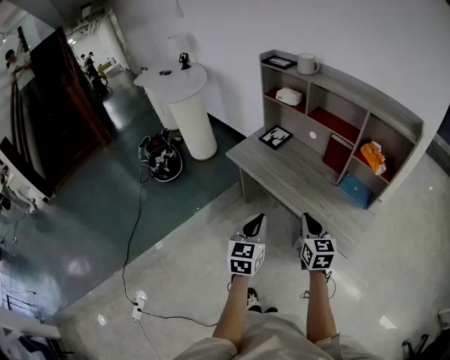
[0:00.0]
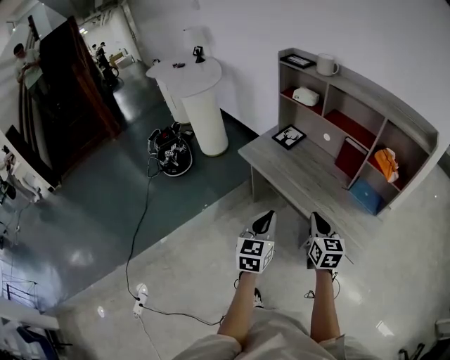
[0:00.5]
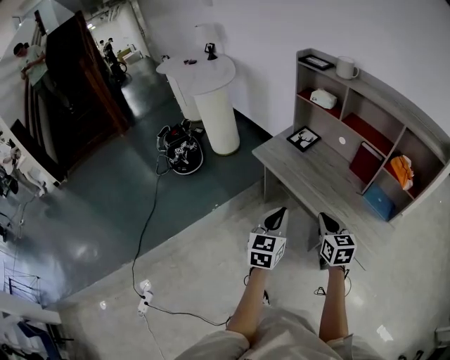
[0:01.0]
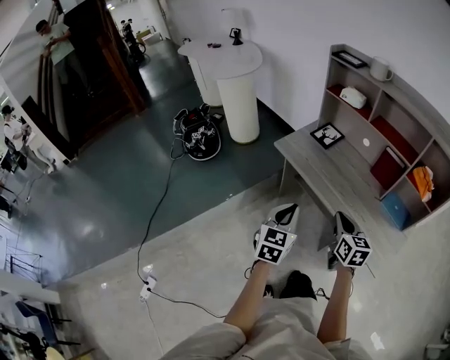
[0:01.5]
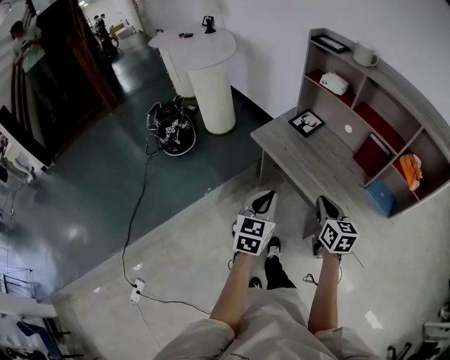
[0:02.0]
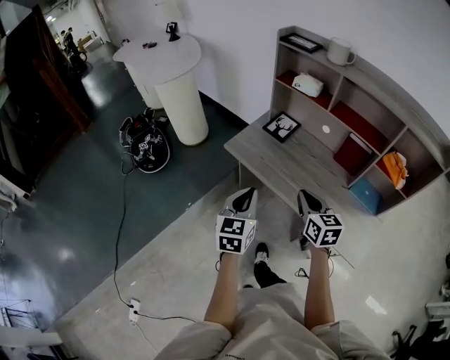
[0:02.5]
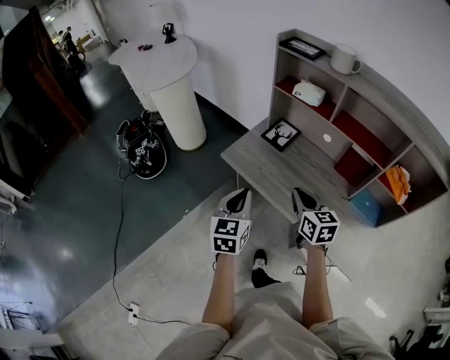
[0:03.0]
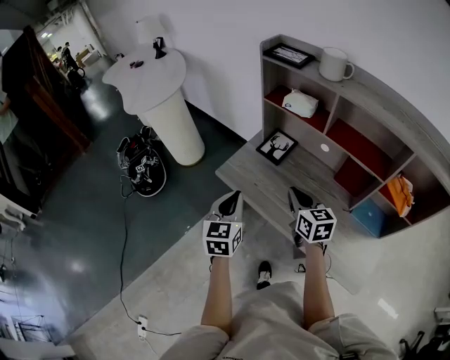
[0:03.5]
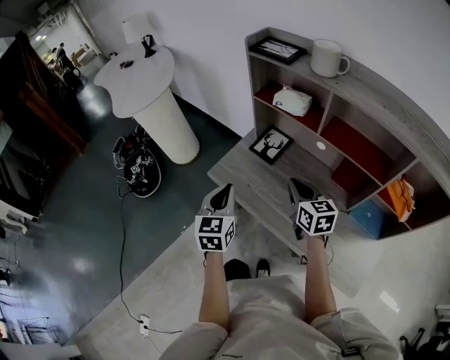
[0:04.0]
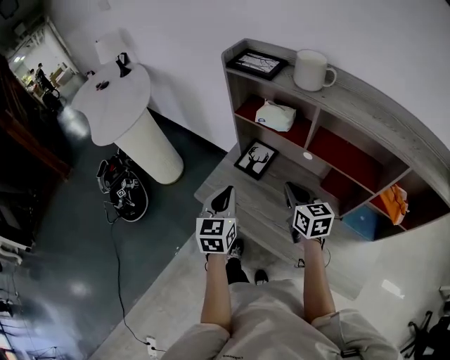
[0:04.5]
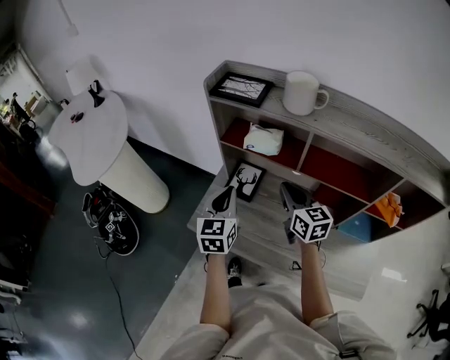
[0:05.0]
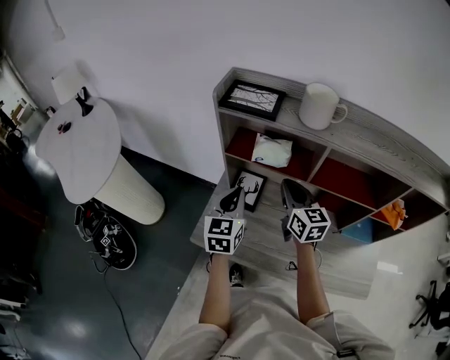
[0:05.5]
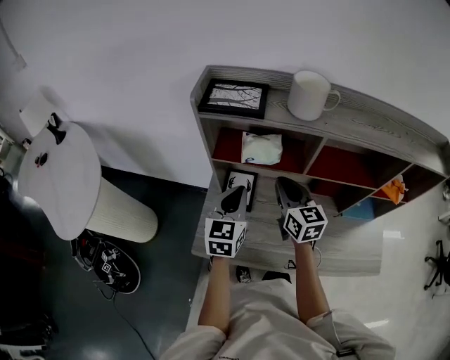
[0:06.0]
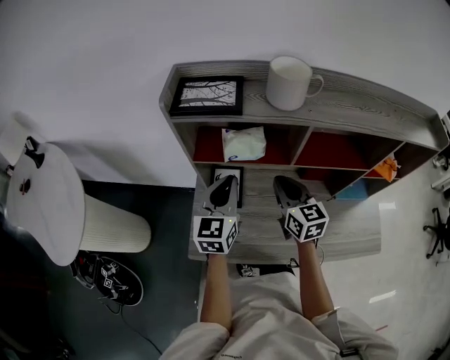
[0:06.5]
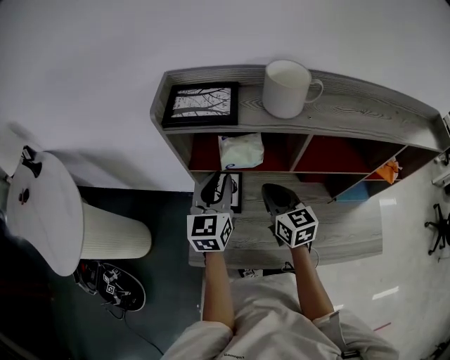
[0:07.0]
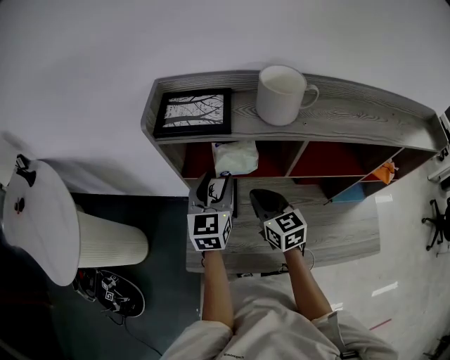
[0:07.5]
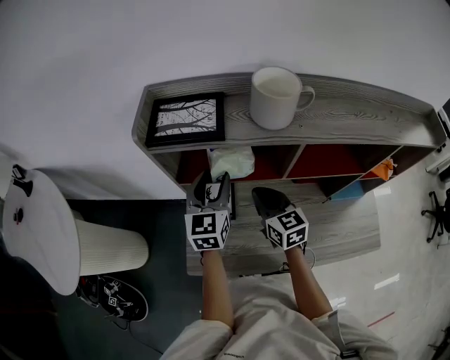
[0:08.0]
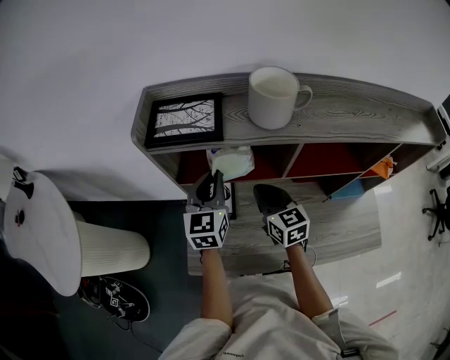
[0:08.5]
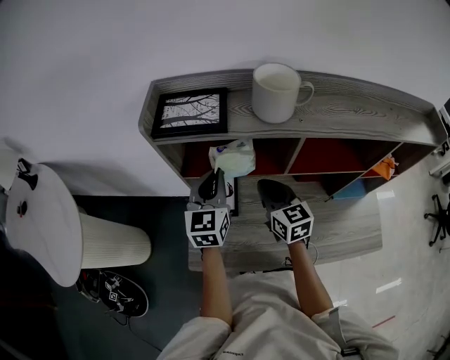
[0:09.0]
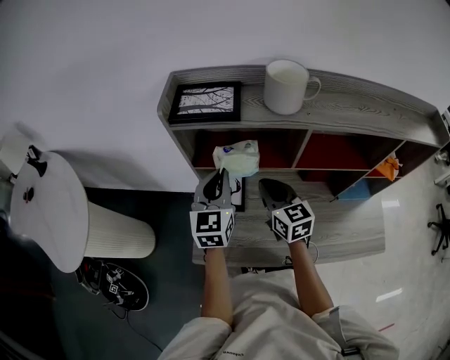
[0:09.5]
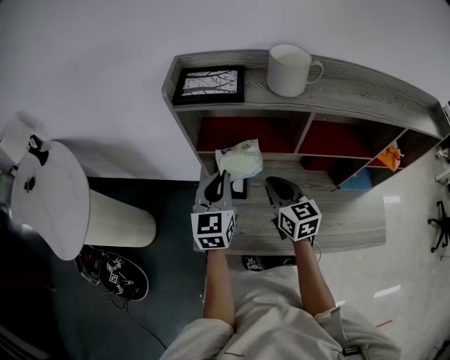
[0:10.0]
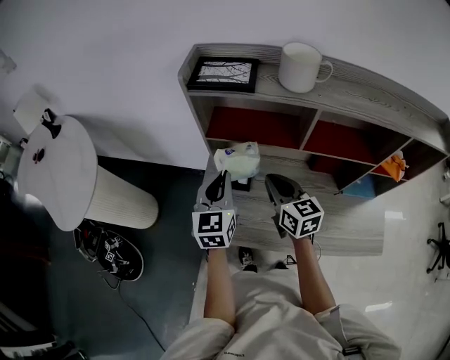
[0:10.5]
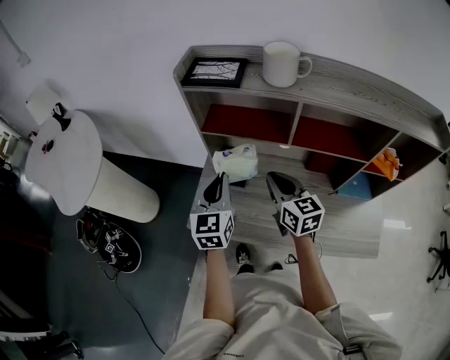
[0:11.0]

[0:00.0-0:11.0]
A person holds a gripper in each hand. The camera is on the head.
0:00.0 to 0:02.0: The two grippers go some 15 cm forward and to the left.
0:02.0 to 0:03.5: Both grippers move forward, approximately 25 cm.
0:03.5 to 0:05.5: Both grippers move forward, roughly 25 cm. The right gripper swivels some 20 degrees, while the left gripper changes its angle by some 20 degrees.
0:05.5 to 0:07.5: The left gripper moves forward, about 10 cm, and opens. Meanwhile the right gripper is displaced downward by about 5 cm.
0:07.5 to 0:09.0: The left gripper closes.
0:09.0 to 0:11.0: Both grippers travel together backward, about 15 cm.

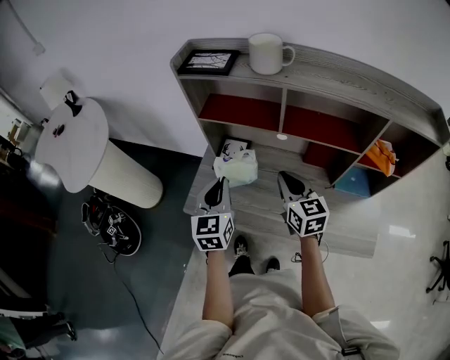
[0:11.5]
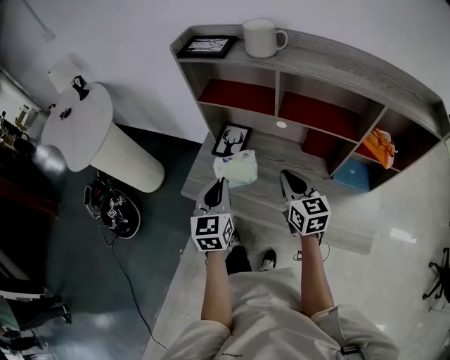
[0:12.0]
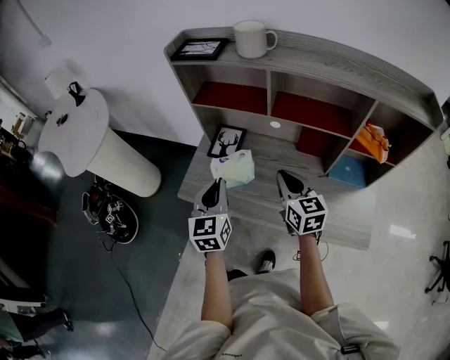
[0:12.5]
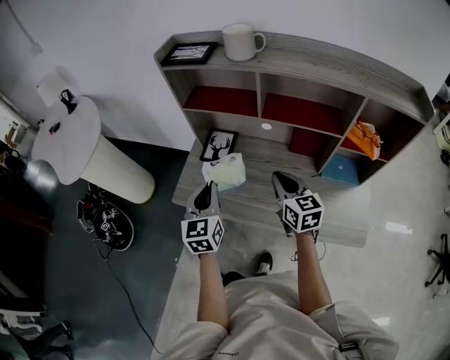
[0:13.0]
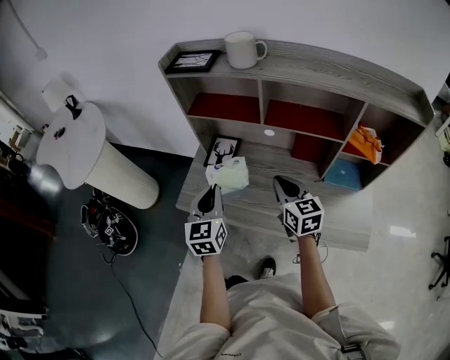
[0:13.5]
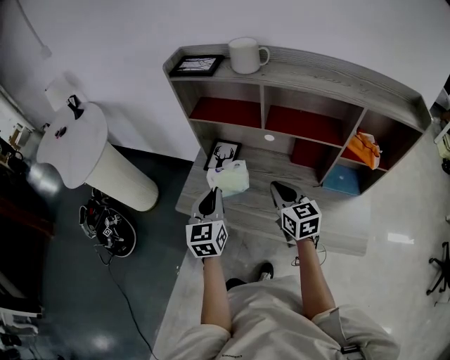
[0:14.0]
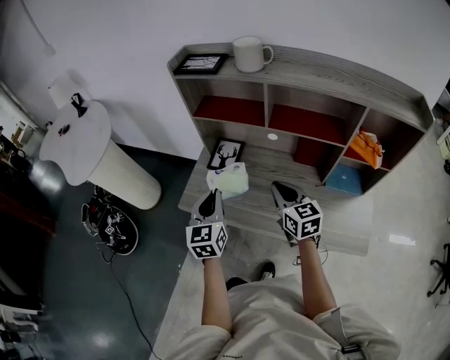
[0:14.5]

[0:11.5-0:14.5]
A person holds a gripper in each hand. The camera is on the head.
0:11.5 to 0:13.0: Both grippers move backward, about 5 cm.
0:13.0 to 0:14.5: There are only small adjustments of the grippers.

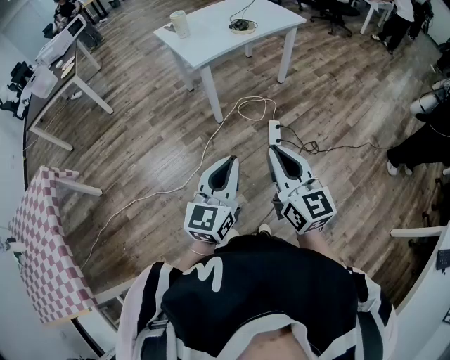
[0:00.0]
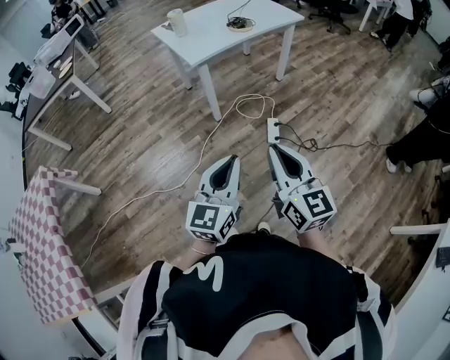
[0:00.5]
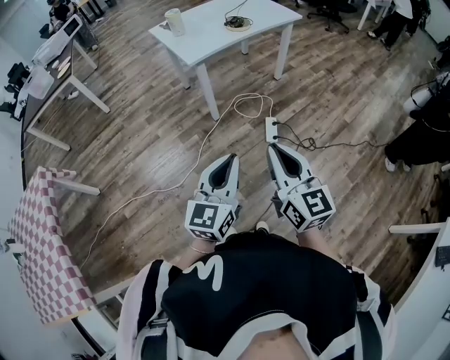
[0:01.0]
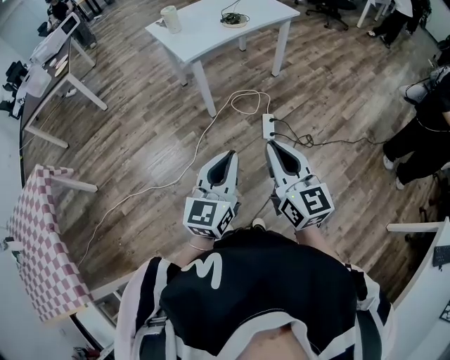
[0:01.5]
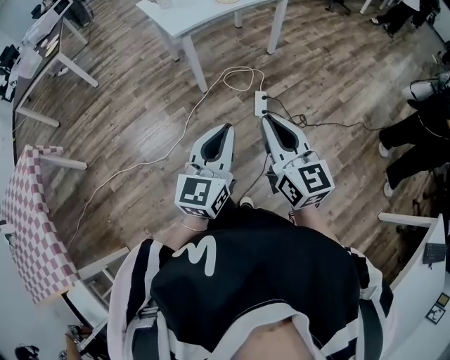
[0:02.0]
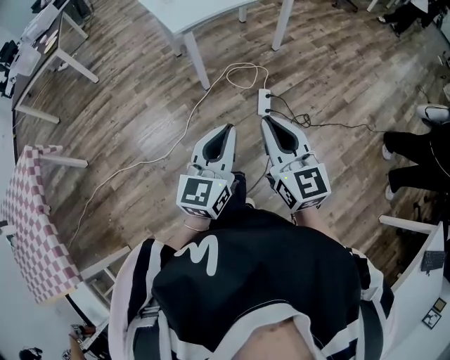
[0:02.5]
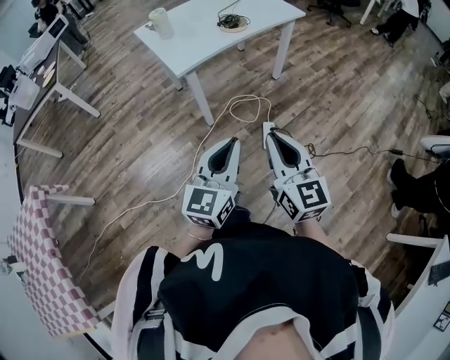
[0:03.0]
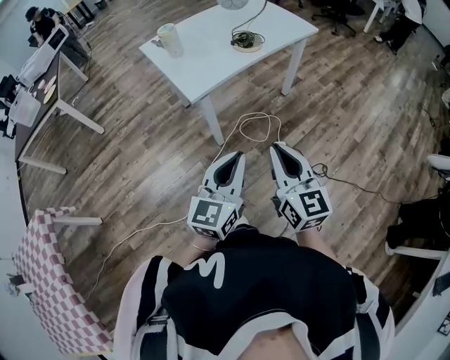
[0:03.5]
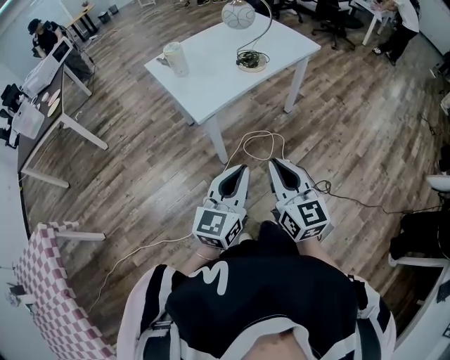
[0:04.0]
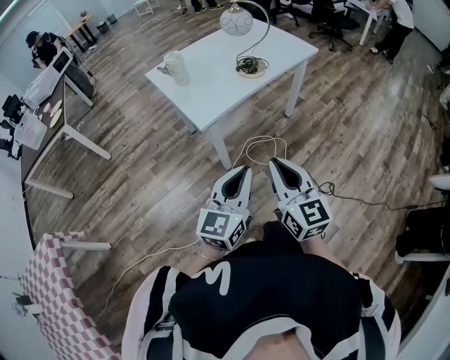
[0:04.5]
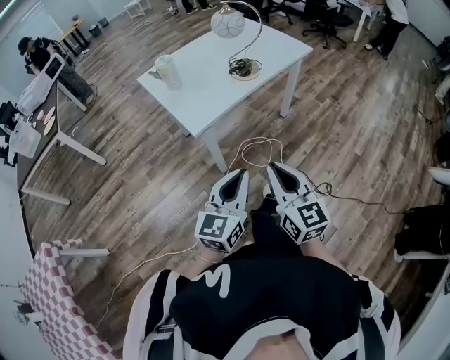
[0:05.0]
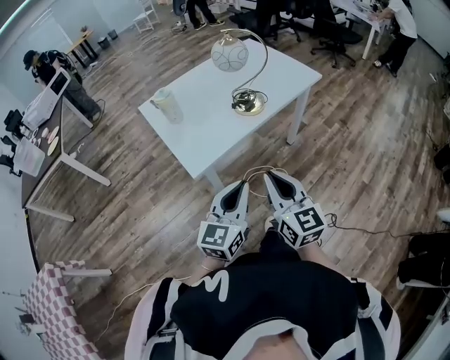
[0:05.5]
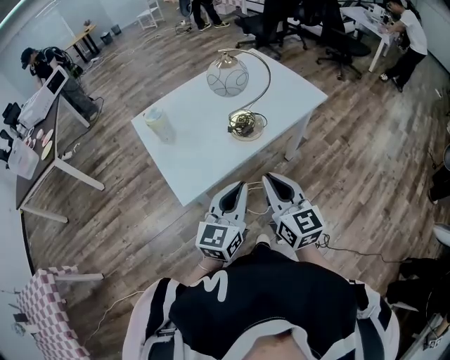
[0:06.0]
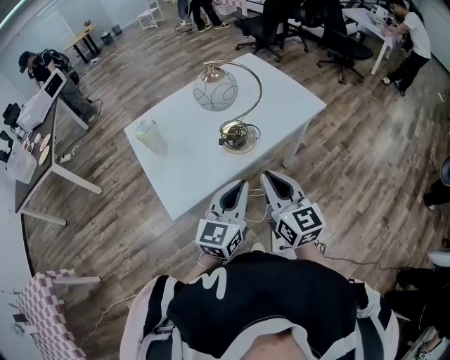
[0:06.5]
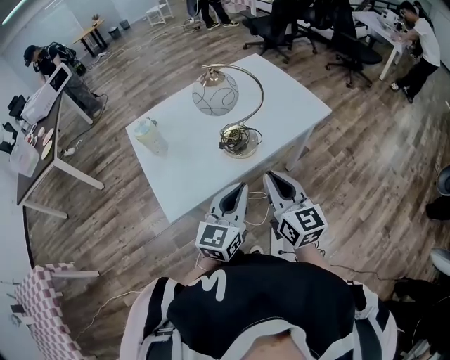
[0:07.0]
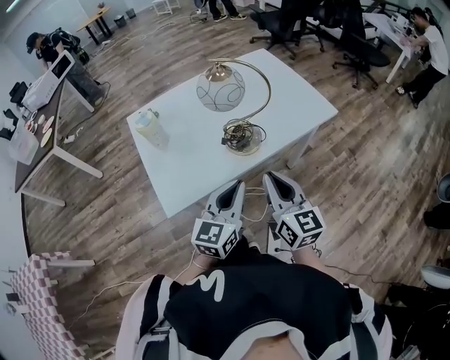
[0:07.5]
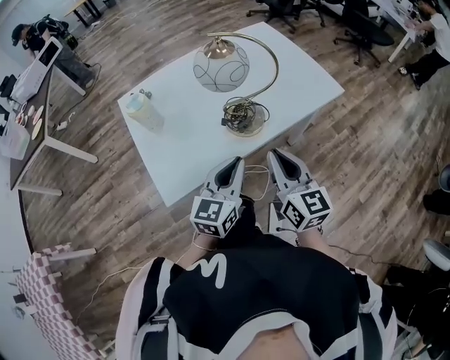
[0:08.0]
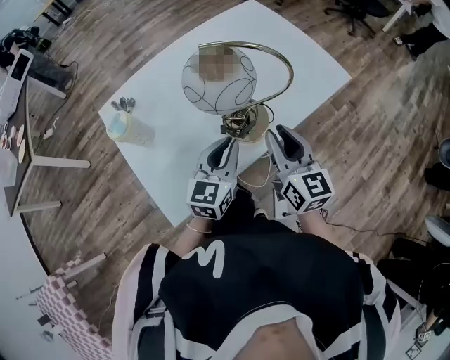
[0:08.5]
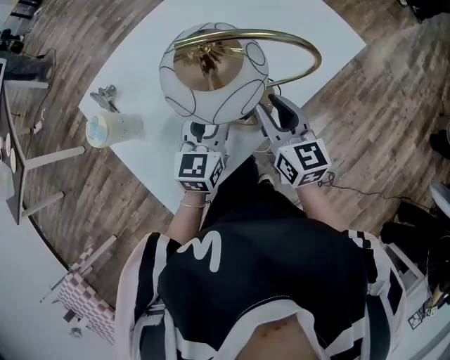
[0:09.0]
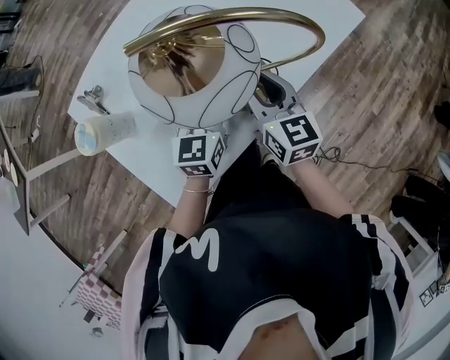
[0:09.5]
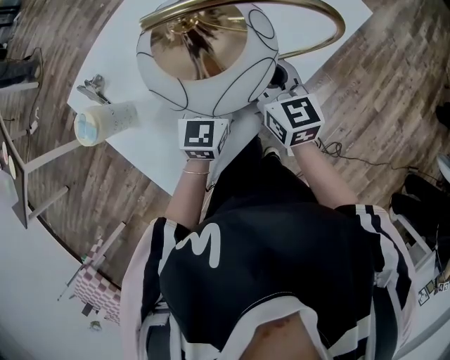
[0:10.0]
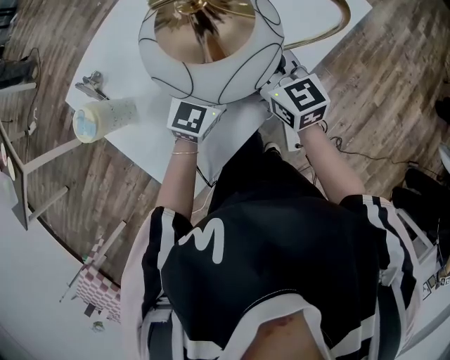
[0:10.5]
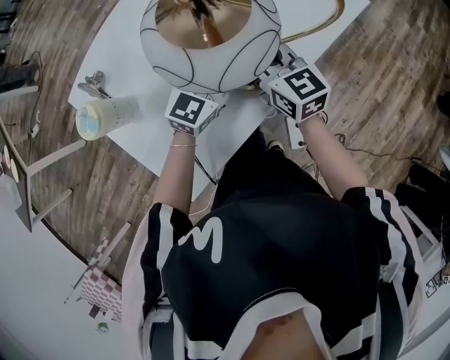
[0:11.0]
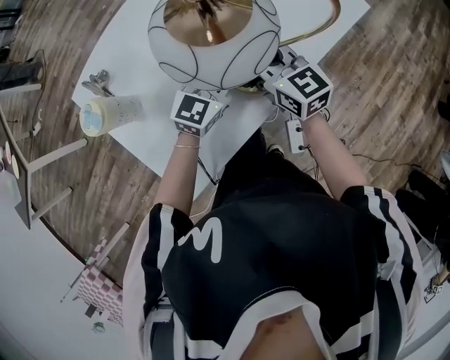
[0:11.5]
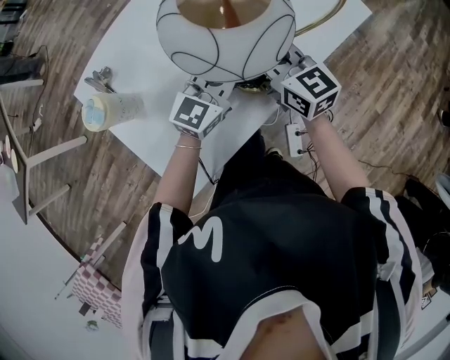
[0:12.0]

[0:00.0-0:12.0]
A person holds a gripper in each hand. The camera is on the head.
0:00.0 to 0:02.0: Both grippers travel together to the right, about 5 cm.
0:02.0 to 0:04.0: The left gripper travels forward by some 30 cm. Meanwhile the right gripper heads forward and to the left, covering roughly 30 cm.
0:04.0 to 0:06.0: Both grippers move forward, some 30 cm.
0:06.0 to 0:08.0: The two grippers go about 15 cm forward.
0:08.0 to 0:10.0: The two grippers go roughly 25 cm forward and downward. The left gripper opens up; the right gripper opens its fingers.
0:10.0 to 0:12.0: The right gripper closes its fingers, while the left gripper turns by approximately 20 degrees, and closes up.

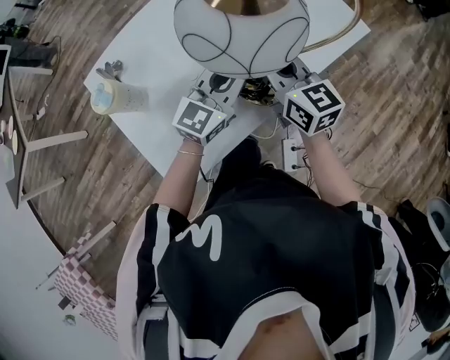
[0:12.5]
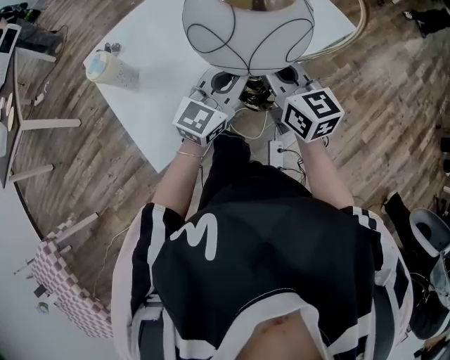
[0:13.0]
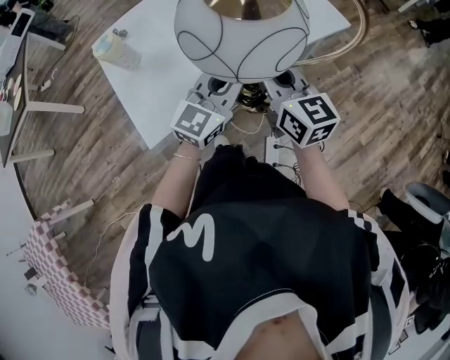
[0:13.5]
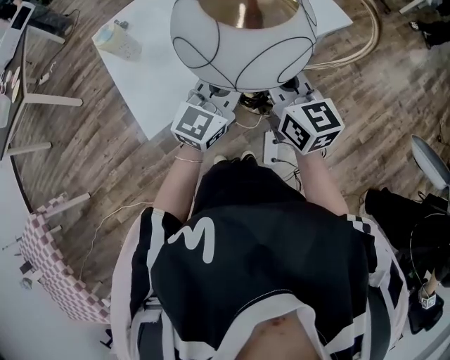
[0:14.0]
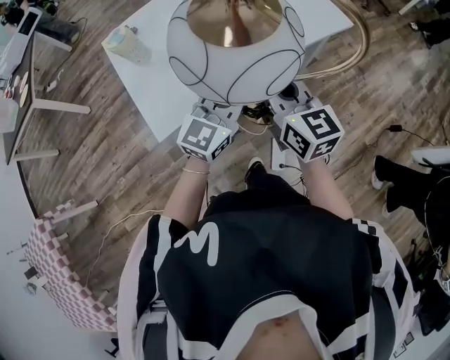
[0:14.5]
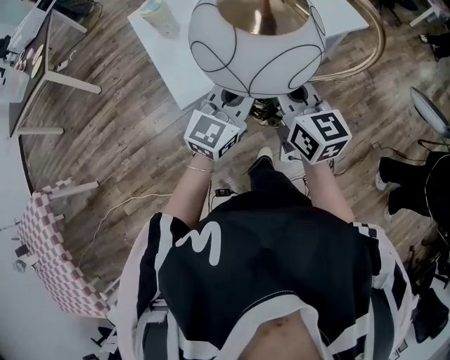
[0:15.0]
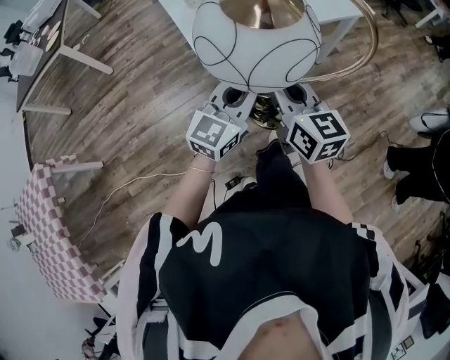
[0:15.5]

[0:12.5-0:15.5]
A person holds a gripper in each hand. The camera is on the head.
0:12.5 to 0:14.0: Both grippers travel together backward and to the right, approximately 20 cm.
0:14.0 to 0:15.5: Both grippers travel together backward and to the left, about 30 cm.
